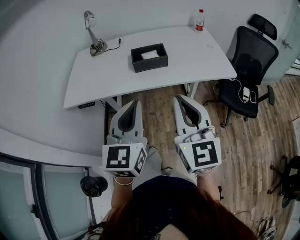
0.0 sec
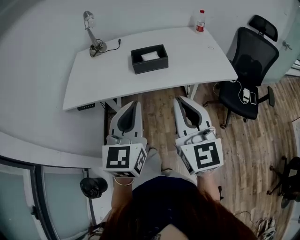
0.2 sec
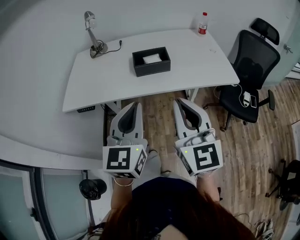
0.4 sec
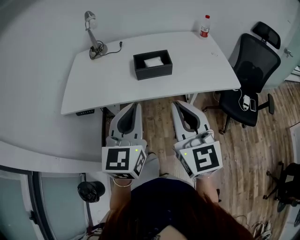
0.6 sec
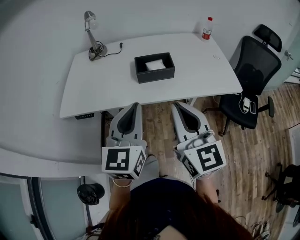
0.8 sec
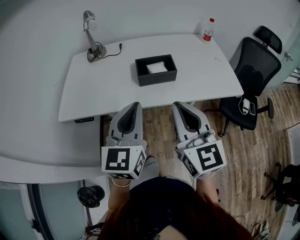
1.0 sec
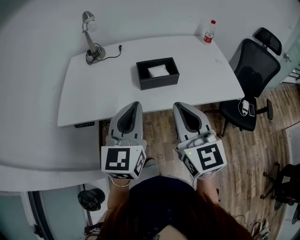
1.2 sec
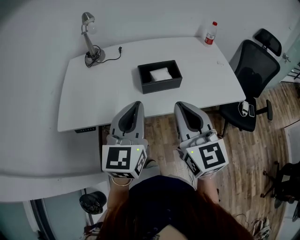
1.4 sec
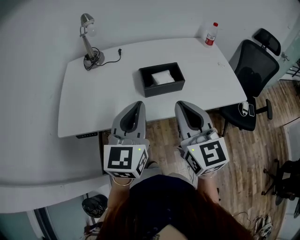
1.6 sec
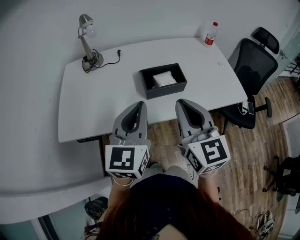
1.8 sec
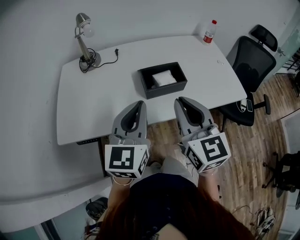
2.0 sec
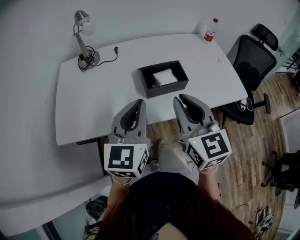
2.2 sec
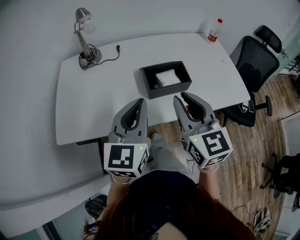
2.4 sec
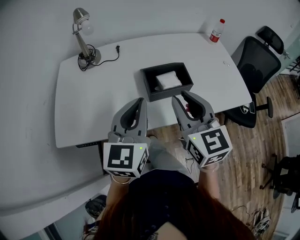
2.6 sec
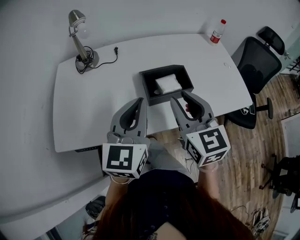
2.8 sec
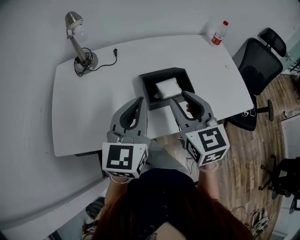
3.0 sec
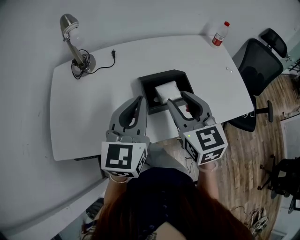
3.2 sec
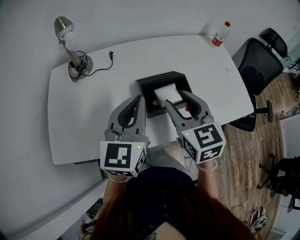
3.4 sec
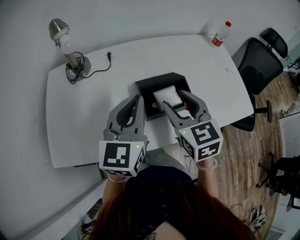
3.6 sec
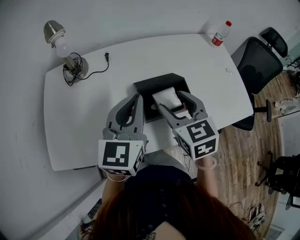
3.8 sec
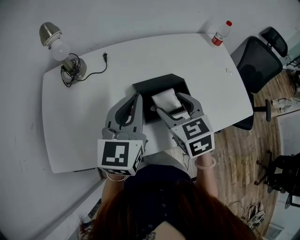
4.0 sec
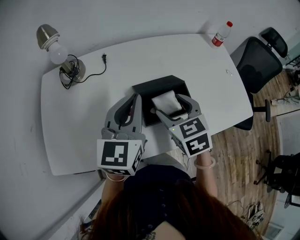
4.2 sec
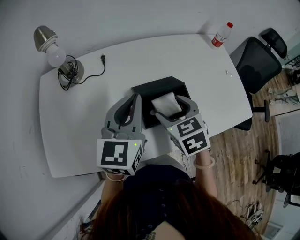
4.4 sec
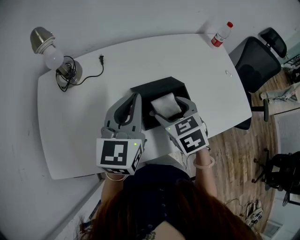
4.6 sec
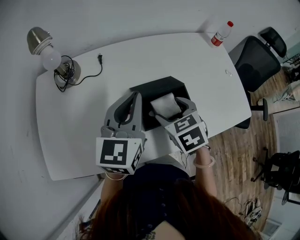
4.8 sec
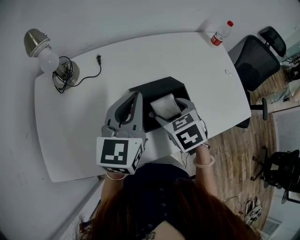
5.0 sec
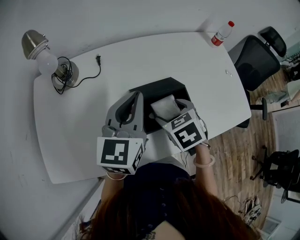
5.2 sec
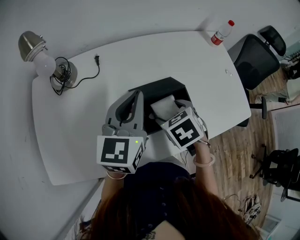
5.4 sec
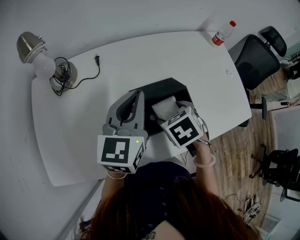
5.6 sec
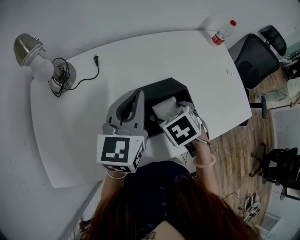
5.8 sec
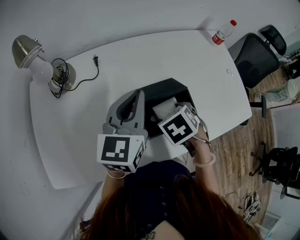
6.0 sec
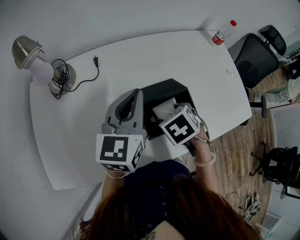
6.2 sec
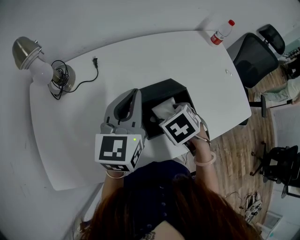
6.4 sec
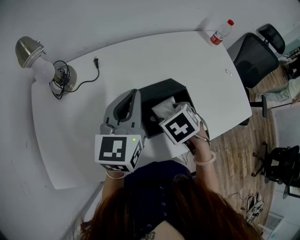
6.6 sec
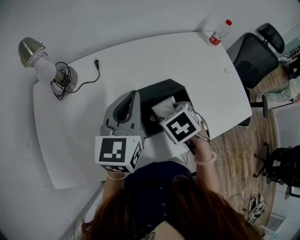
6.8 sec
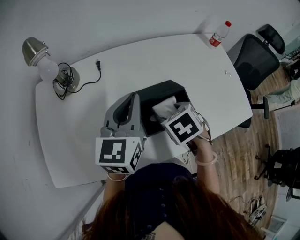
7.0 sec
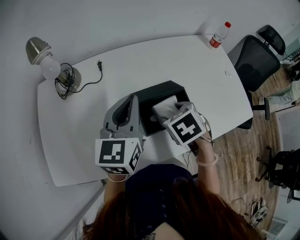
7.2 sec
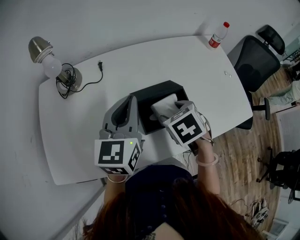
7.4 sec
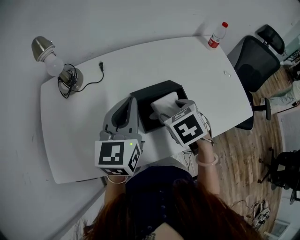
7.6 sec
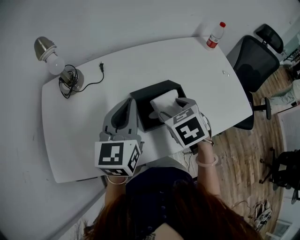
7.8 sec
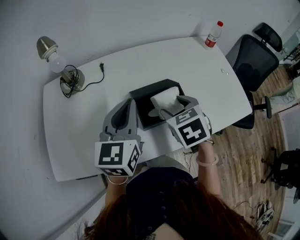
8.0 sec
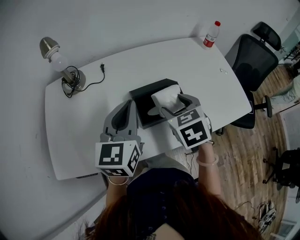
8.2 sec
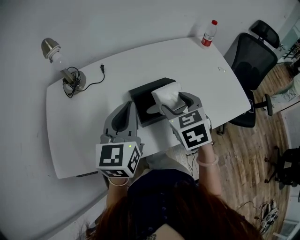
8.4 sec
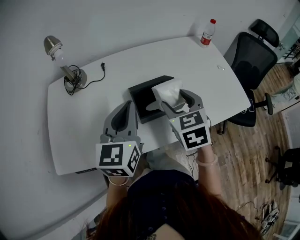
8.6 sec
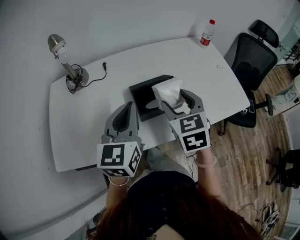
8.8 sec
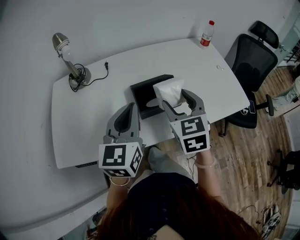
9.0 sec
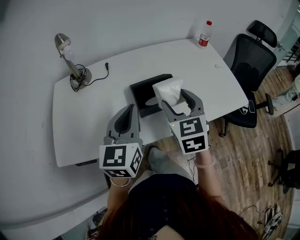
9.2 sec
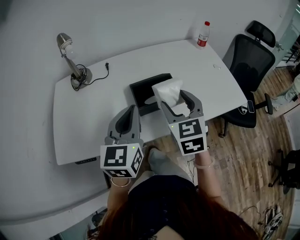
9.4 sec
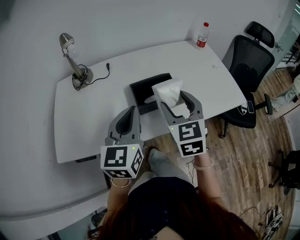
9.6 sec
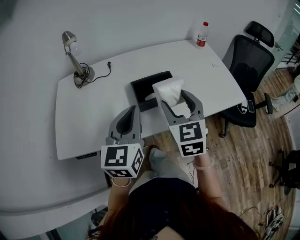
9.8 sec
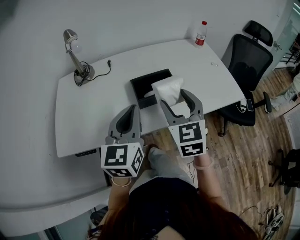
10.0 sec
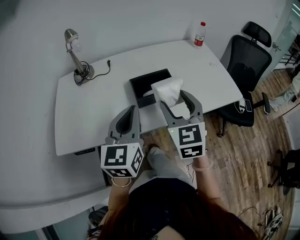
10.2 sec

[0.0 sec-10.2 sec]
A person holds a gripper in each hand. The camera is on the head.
0.0 sec to 1.4 sec: The left gripper moves forward, roughly 15 cm. Meanwhile the right gripper heads forward and to the left, covering some 15 cm.
1.4 sec to 3.0 sec: Both grippers move forward, roughly 15 cm. The right gripper opens up.
3.0 sec to 4.4 sec: The right gripper travels downward and forward by approximately 15 cm, changes its angle by approximately 30 degrees, and opens; the left gripper goes roughly 10 cm forward.
4.4 sec to 5.8 sec: The left gripper moves approximately 5 cm. Meanwhile the right gripper is displaced downward by approximately 5 cm, and rotates some 30 degrees.
5.8 sec to 7.2 sec: The grippers move only a little.
7.2 sec to 8.8 sec: The right gripper goes approximately 10 cm upward and backward, and angles its fingers upward, by approximately 40 degrees, while the left gripper shifts approximately 10 cm backward.
8.8 sec to 10.2 sec: Both grippers move backward, some 10 cm.

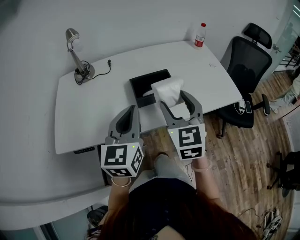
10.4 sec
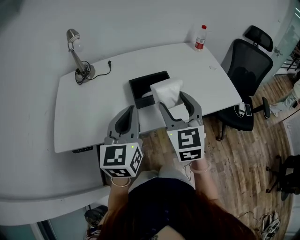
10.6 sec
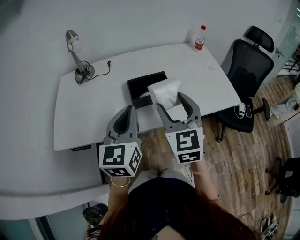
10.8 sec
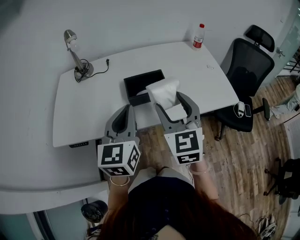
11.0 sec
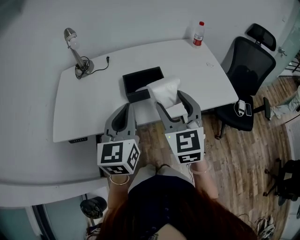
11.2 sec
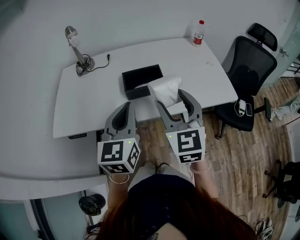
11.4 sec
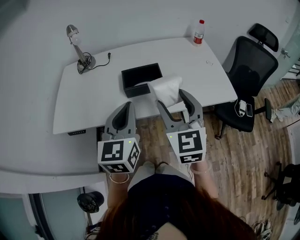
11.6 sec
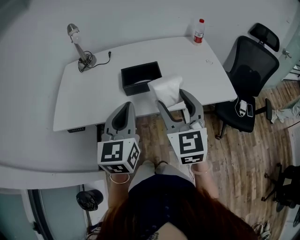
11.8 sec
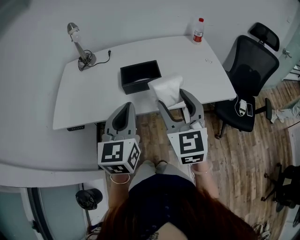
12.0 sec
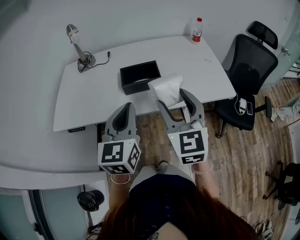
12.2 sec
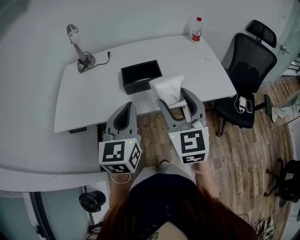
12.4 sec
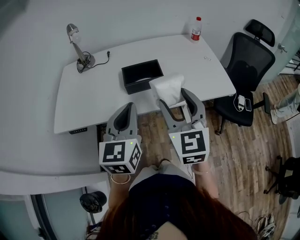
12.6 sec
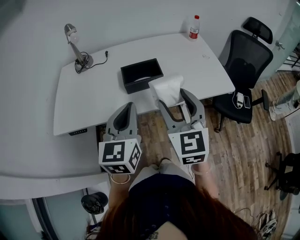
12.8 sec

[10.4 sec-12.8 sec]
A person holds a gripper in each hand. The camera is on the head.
10.4 sec to 11.6 sec: The right gripper moves to the right and backward, approximately 10 cm, while the left gripper goes approximately 5 cm to the right.
11.6 sec to 12.8 sec: The grippers make only small movements.

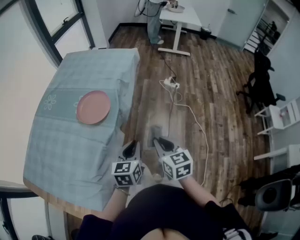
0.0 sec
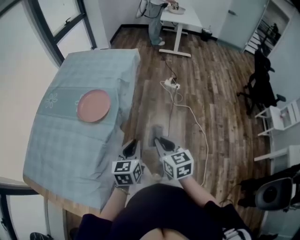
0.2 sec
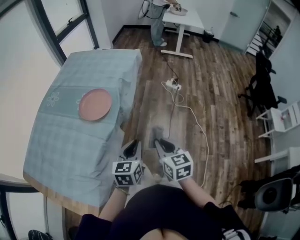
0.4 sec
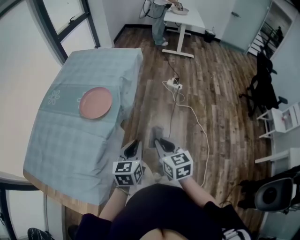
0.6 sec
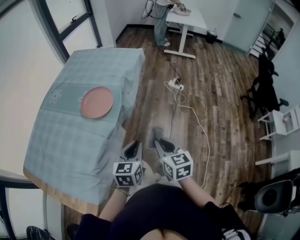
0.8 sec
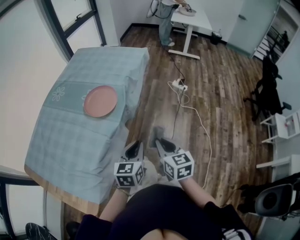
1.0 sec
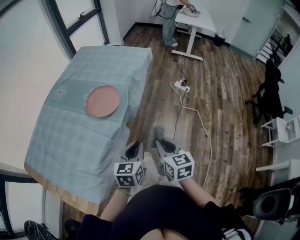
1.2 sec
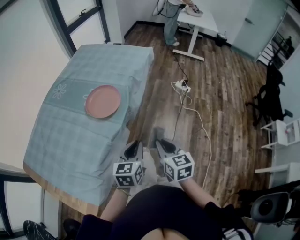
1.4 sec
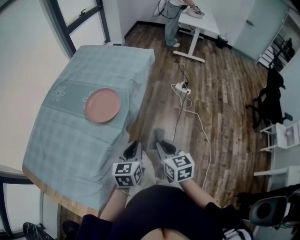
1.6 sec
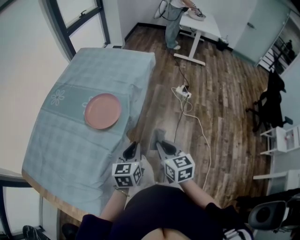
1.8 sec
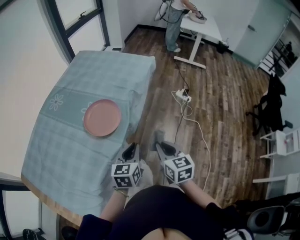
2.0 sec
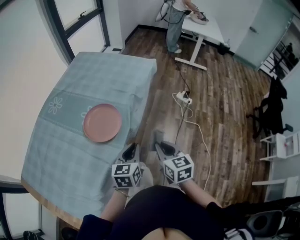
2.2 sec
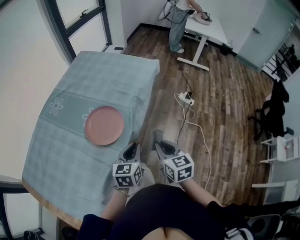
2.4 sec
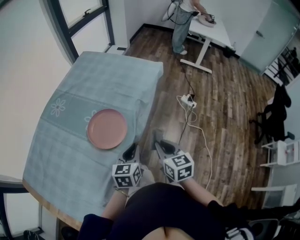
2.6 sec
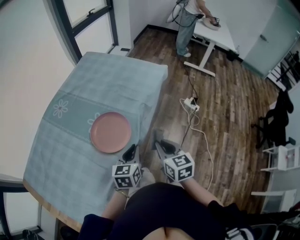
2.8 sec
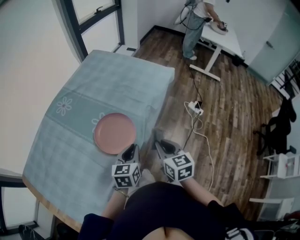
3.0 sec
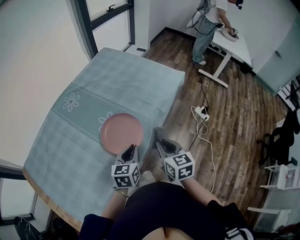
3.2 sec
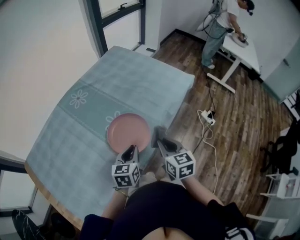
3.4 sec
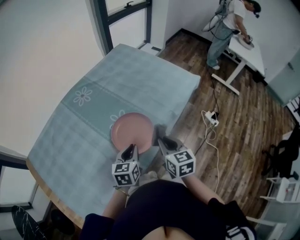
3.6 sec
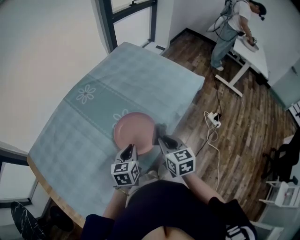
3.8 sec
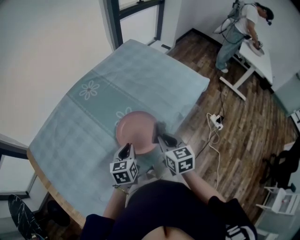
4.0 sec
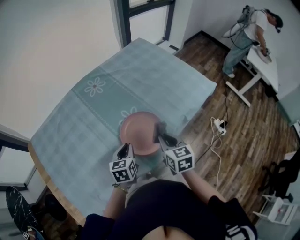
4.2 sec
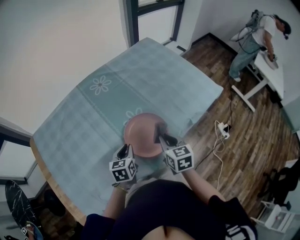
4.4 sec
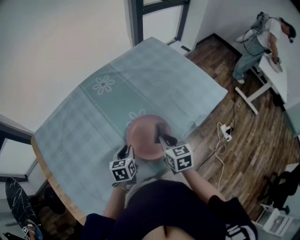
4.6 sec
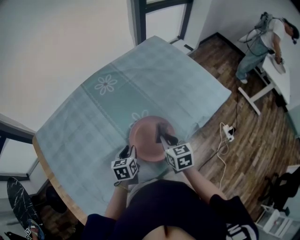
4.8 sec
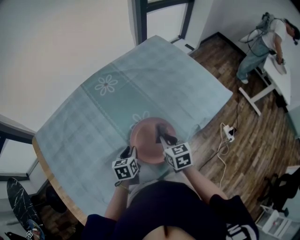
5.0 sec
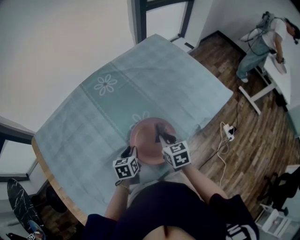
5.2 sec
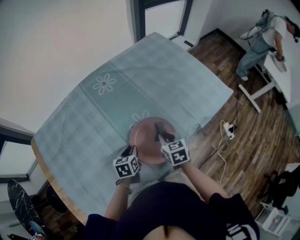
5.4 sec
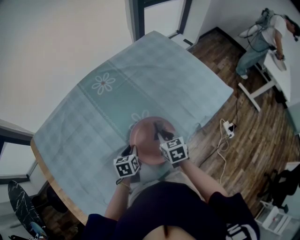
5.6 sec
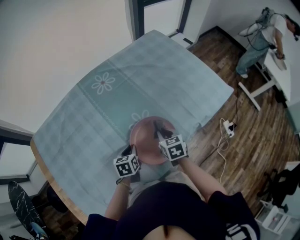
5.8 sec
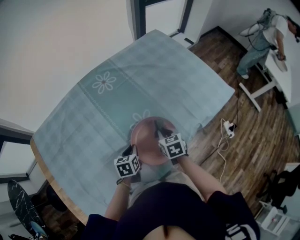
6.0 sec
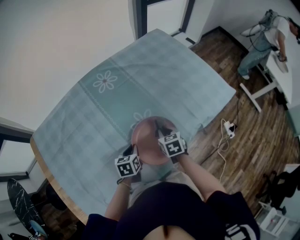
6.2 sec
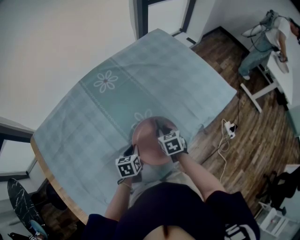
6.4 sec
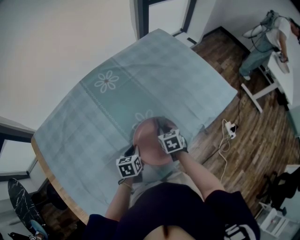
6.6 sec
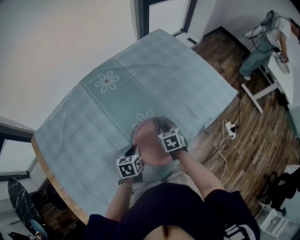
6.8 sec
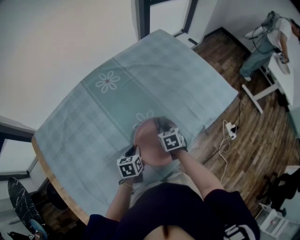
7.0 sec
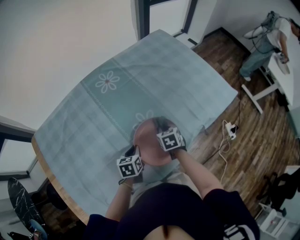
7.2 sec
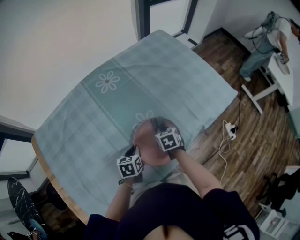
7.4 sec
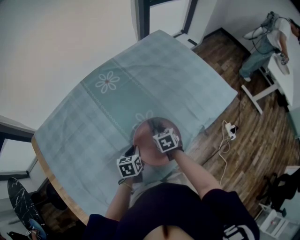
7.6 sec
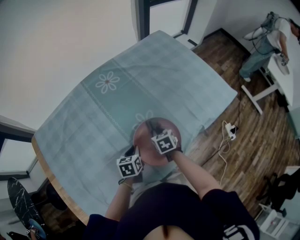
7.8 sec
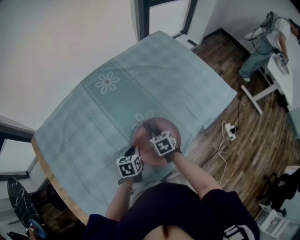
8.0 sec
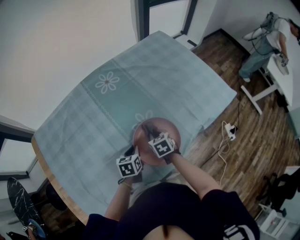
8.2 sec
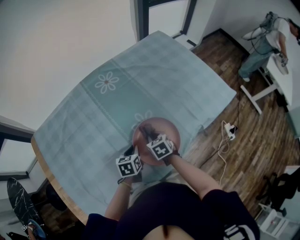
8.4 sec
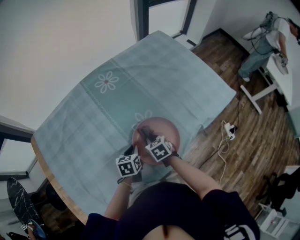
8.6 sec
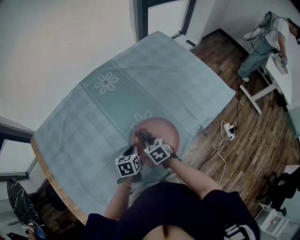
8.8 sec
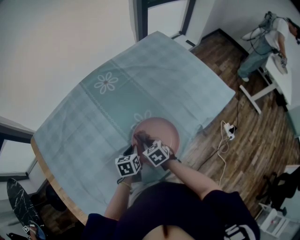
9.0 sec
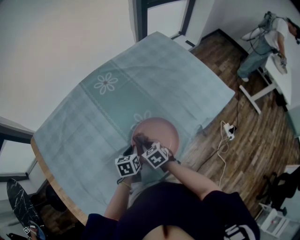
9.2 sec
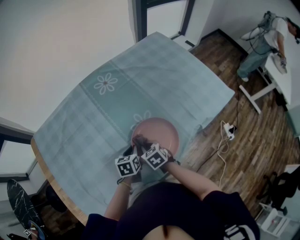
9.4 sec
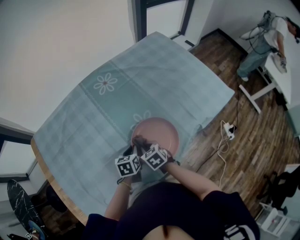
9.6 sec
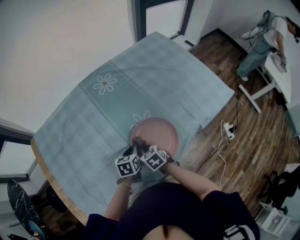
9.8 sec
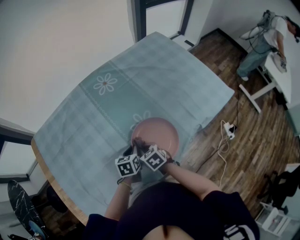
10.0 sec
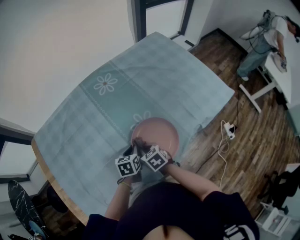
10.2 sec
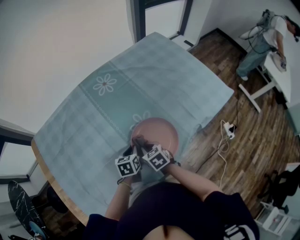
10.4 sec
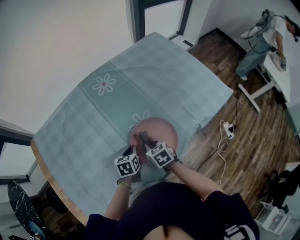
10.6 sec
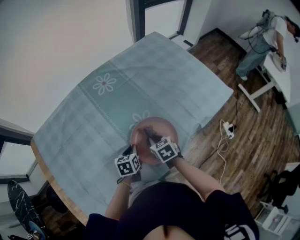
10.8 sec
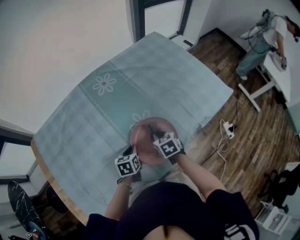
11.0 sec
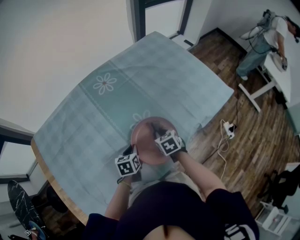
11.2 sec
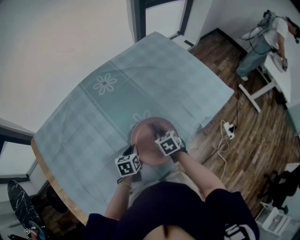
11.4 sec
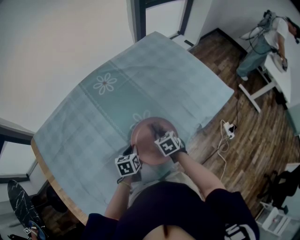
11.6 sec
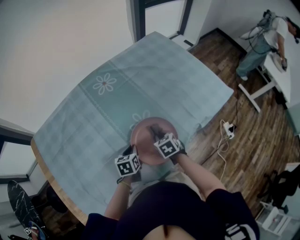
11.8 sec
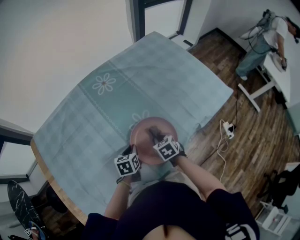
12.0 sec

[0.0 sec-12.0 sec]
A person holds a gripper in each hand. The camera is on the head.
0.0 sec to 1.6 sec: The grippers make only small movements.
1.6 sec to 3.0 sec: Both grippers move forward, approximately 20 cm.
3.0 sec to 4.4 sec: The left gripper goes some 20 cm to the left and downward, and turns by some 30 degrees. Meanwhile the right gripper moves forward and to the left, approximately 20 cm, and changes its angle by approximately 20 degrees.
4.4 sec to 6.0 sec: The left gripper heads downward, covering roughly 10 cm, while the right gripper shifts about 15 cm downward and forward.
6.0 sec to 7.6 sec: The right gripper moves about 5 cm.
7.6 sec to 9.0 sec: The right gripper moves to the left and backward, roughly 10 cm.
9.0 sec to 10.4 sec: The grippers make only small movements.
10.4 sec to 12.0 sec: The right gripper travels to the right by roughly 10 cm.
